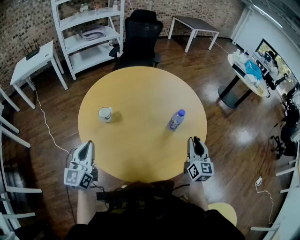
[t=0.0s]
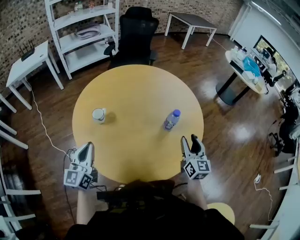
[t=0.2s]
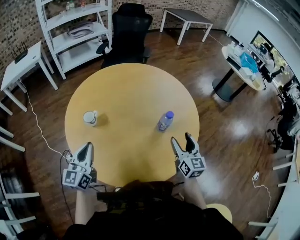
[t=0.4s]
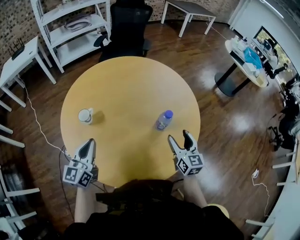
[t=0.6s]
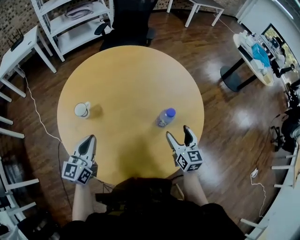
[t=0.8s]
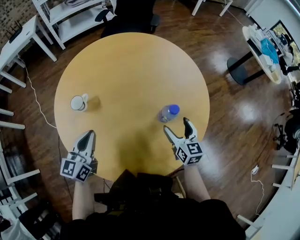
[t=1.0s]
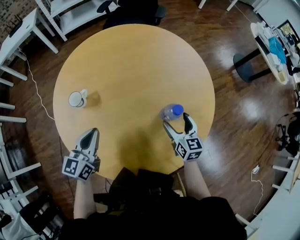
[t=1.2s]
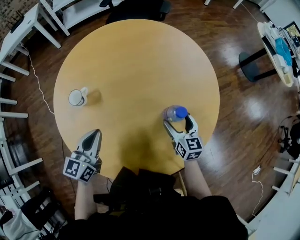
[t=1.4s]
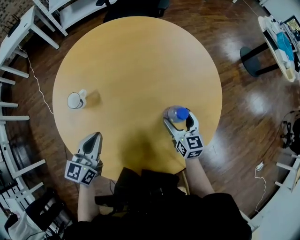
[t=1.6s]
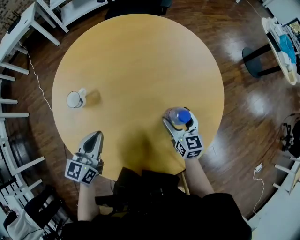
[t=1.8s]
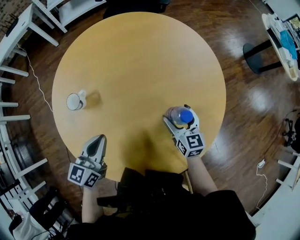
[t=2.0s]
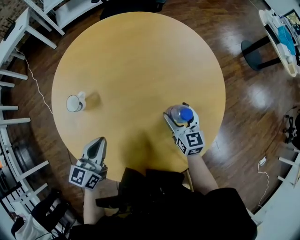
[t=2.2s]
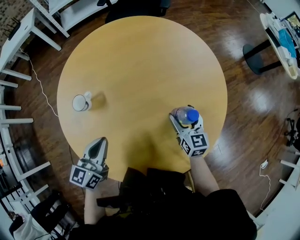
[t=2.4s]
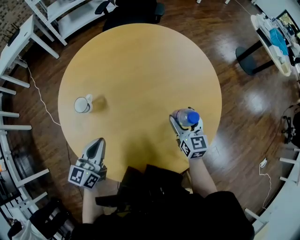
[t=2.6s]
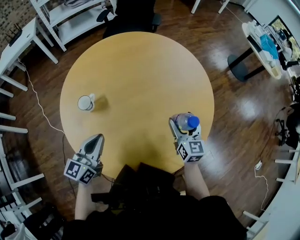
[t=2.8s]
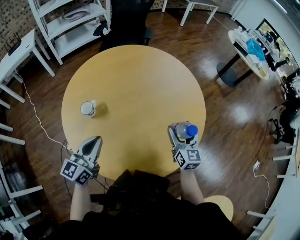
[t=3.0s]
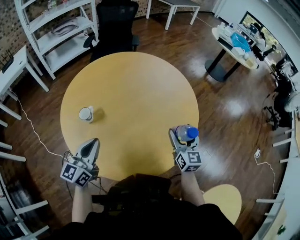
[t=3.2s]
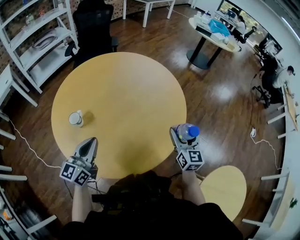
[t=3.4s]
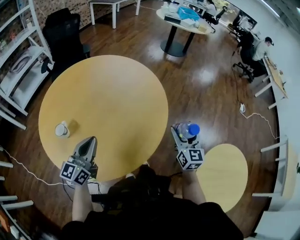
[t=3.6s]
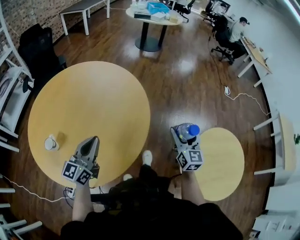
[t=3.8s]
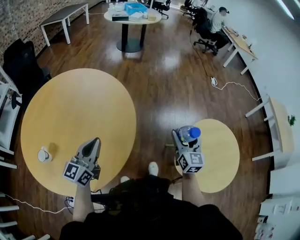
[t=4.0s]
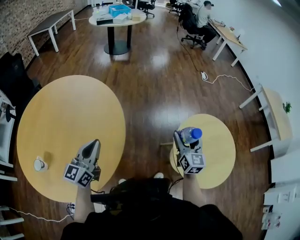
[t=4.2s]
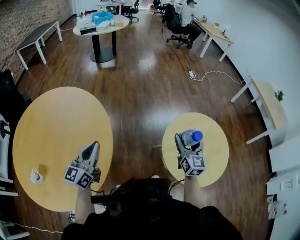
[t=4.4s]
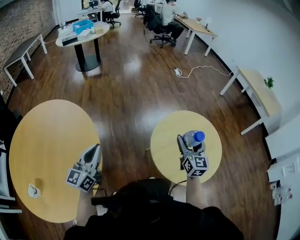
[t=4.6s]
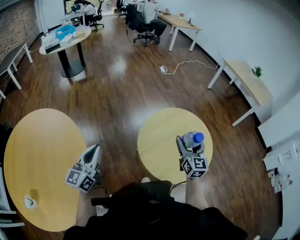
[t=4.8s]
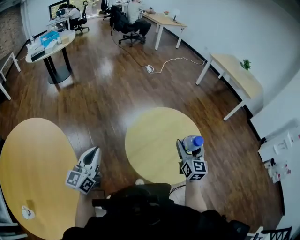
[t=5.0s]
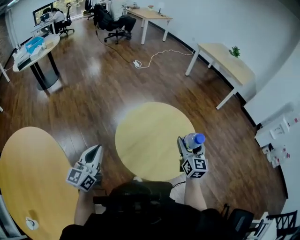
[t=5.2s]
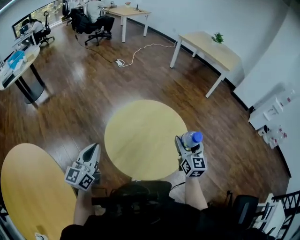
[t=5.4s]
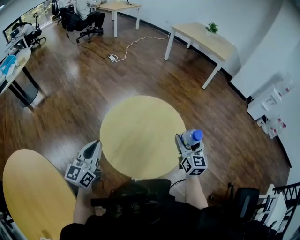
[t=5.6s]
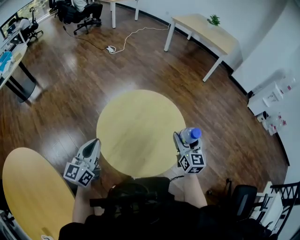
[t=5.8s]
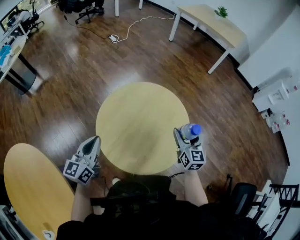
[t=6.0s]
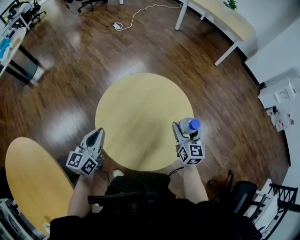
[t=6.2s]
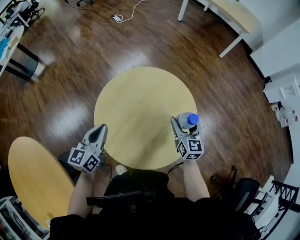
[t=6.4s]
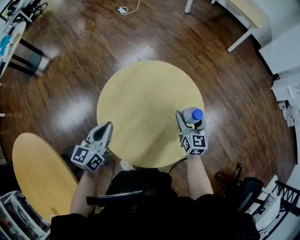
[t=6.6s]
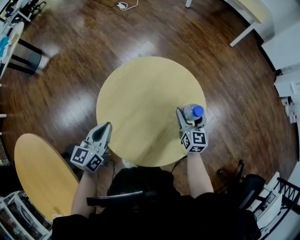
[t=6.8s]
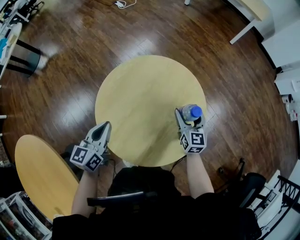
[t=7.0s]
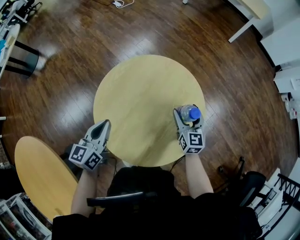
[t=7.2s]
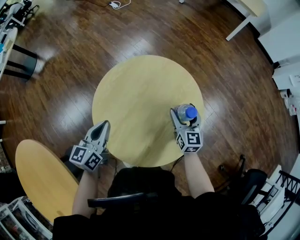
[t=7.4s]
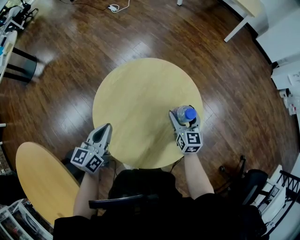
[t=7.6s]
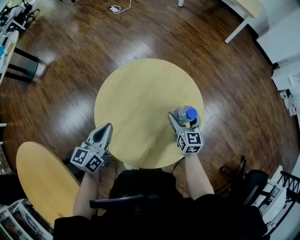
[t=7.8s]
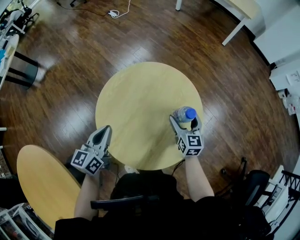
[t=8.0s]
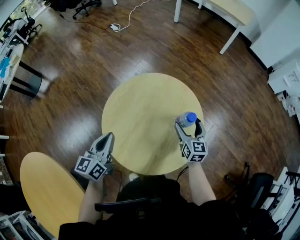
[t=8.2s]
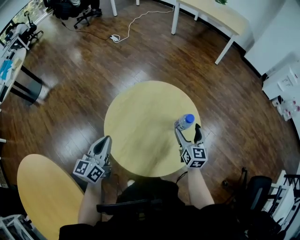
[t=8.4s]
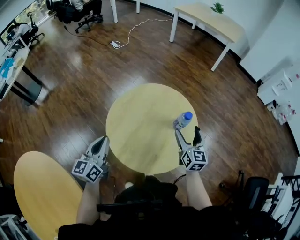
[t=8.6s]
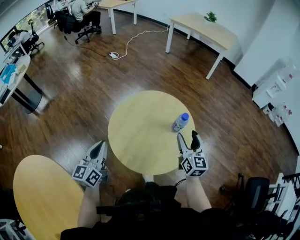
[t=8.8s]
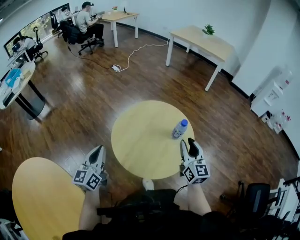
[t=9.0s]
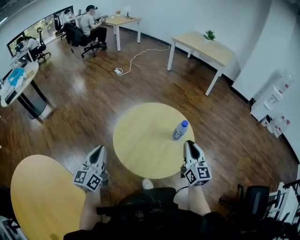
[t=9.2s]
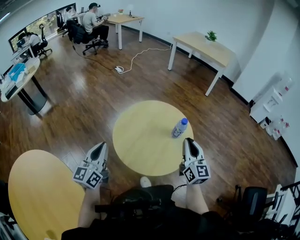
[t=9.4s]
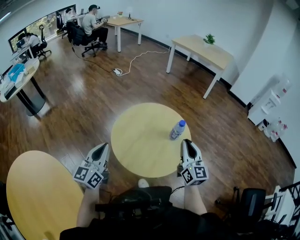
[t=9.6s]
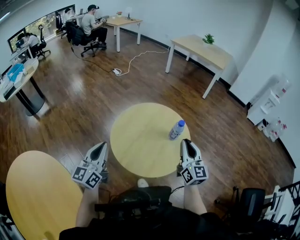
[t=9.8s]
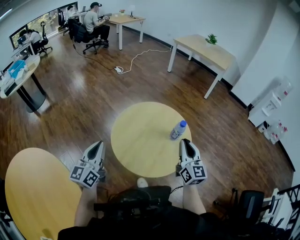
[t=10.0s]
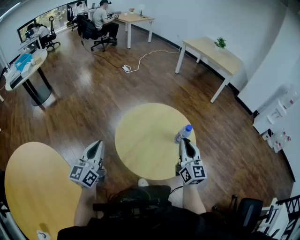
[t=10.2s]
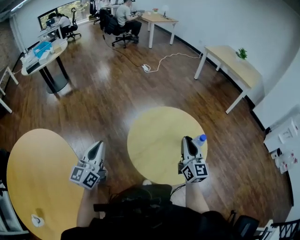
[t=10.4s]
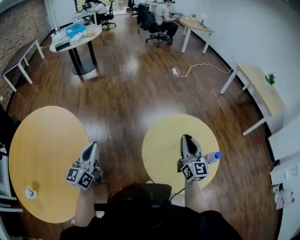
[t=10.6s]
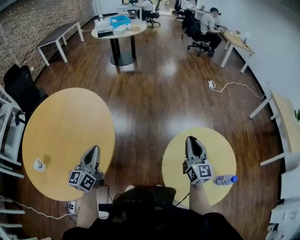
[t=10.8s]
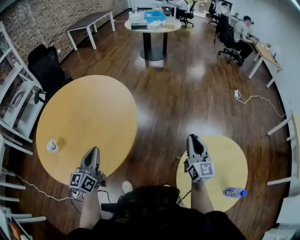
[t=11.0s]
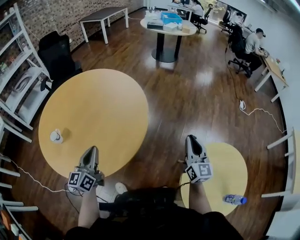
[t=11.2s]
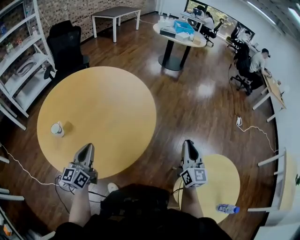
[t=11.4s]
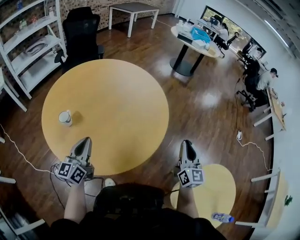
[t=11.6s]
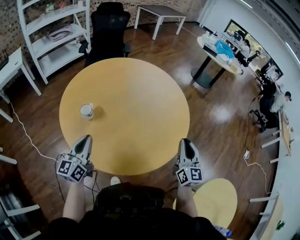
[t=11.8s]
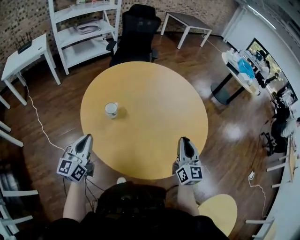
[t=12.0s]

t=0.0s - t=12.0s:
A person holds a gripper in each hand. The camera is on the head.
t=0.0s - t=1.6s: The right gripper moves forward and downward, some 25 cm, changes its angle by approximately 30 degrees, and opens its fingers, while the left gripper travels to the right, forward and downward by some 20 cm, and turns by about 20 degrees.
t=1.6s - t=3.0s: The left gripper shifts roughly 5 cm upward. The right gripper goes some 15 cm upward and backward, and changes its angle by about 20 degrees.
t=3.0s - t=4.4s: The left gripper shifts by some 35 cm, and rotates approximately 50 degrees; the right gripper ends up some 60 cm from where it was, and changes its angle by some 70 degrees.
t=4.4s - t=6.0s: The left gripper moves about 40 cm, and turns by some 40 degrees, while the right gripper moves about 40 cm, and changes its angle by roughly 40 degrees.
t=6.0s - t=7.6s: The right gripper is displaced downward by approximately 15 cm. Meanwhile the left gripper is displaced downward and forward by about 10 cm.
t=7.6s - t=9.0s: The left gripper travels upward, backward and to the left by approximately 20 cm, and turns by some 20 degrees, while the right gripper is displaced upward and backward by about 25 cm, rotates roughly 20 degrees, and closes.
t=9.0s - t=10.4s: The left gripper heads backward, covering roughly 5 cm, while the right gripper travels to the left and forward by roughly 10 cm.
t=10.4s - t=12.0s: The right gripper ends up approximately 70 cm from where it was, and swivels approximately 80 degrees; the left gripper shifts by some 70 cm, and rotates some 90 degrees.

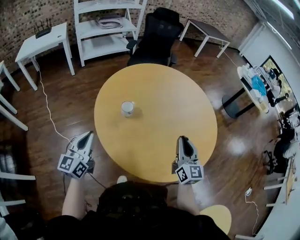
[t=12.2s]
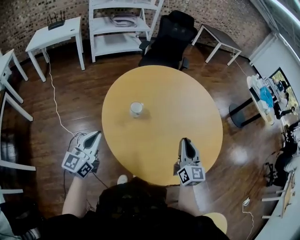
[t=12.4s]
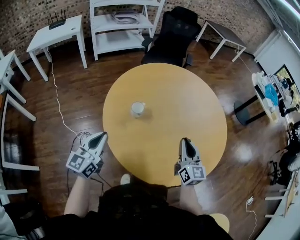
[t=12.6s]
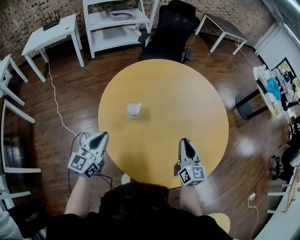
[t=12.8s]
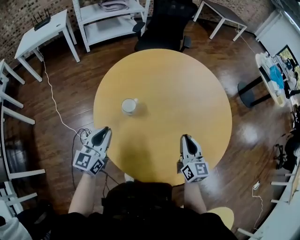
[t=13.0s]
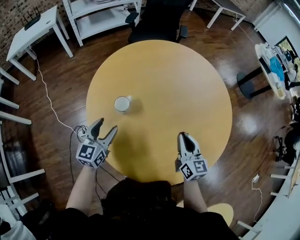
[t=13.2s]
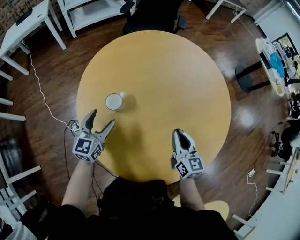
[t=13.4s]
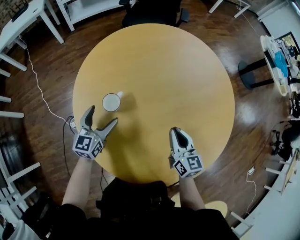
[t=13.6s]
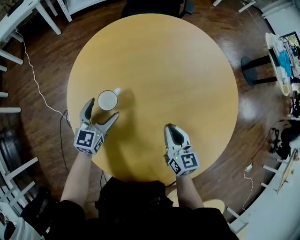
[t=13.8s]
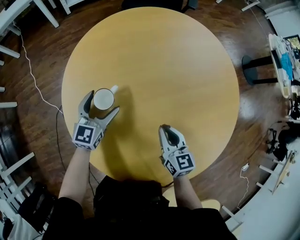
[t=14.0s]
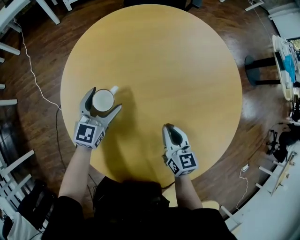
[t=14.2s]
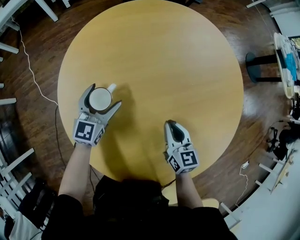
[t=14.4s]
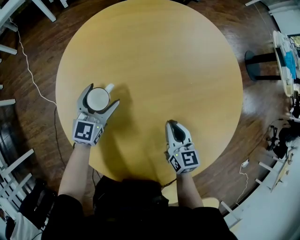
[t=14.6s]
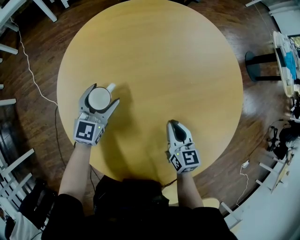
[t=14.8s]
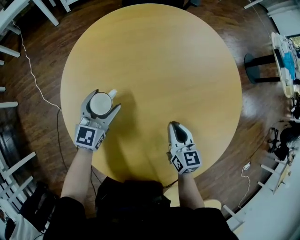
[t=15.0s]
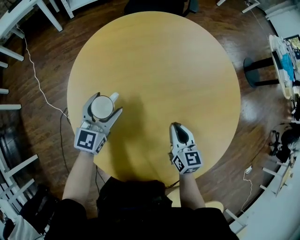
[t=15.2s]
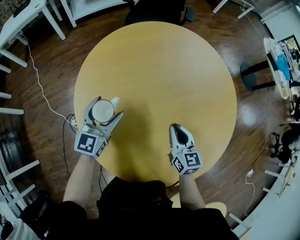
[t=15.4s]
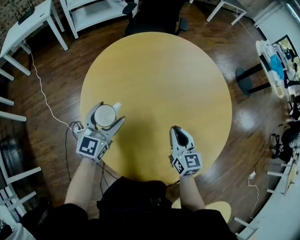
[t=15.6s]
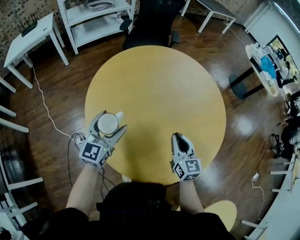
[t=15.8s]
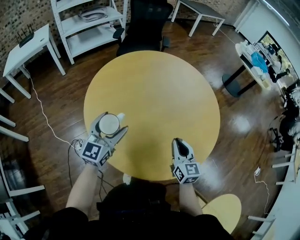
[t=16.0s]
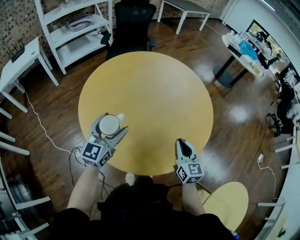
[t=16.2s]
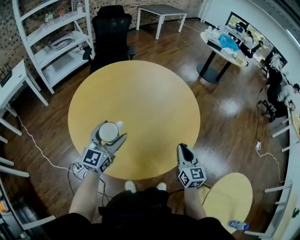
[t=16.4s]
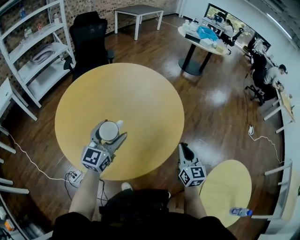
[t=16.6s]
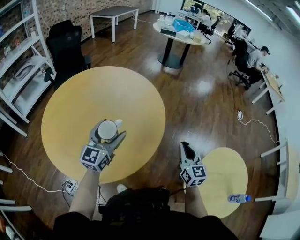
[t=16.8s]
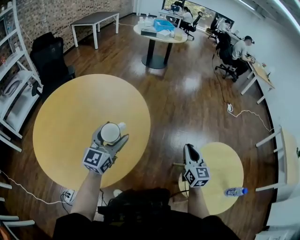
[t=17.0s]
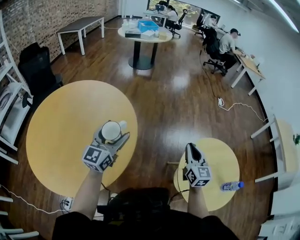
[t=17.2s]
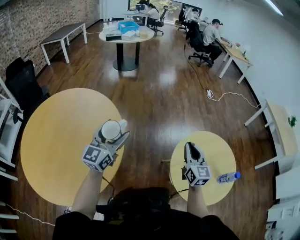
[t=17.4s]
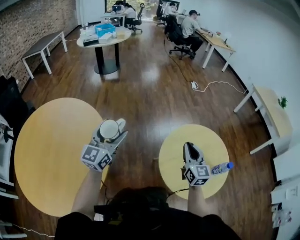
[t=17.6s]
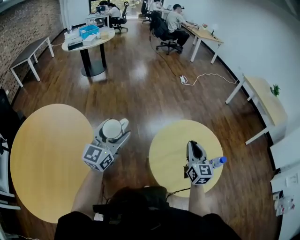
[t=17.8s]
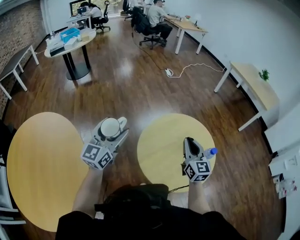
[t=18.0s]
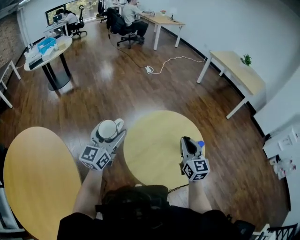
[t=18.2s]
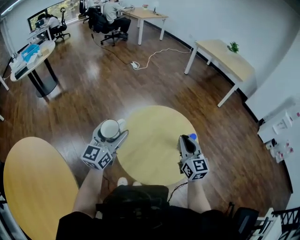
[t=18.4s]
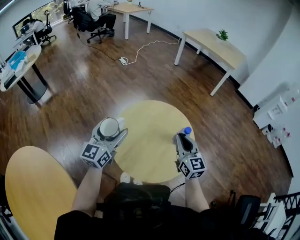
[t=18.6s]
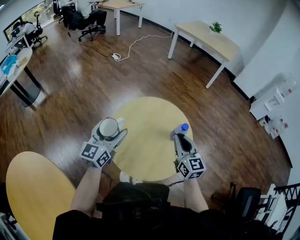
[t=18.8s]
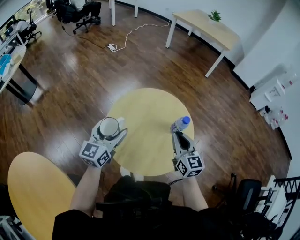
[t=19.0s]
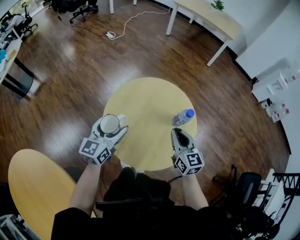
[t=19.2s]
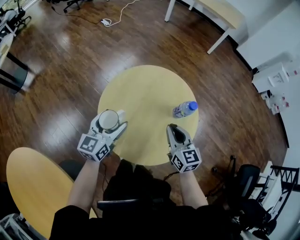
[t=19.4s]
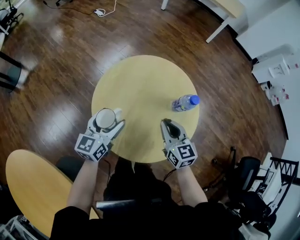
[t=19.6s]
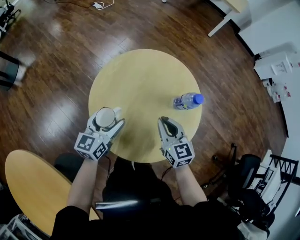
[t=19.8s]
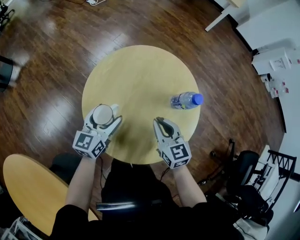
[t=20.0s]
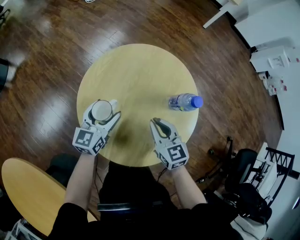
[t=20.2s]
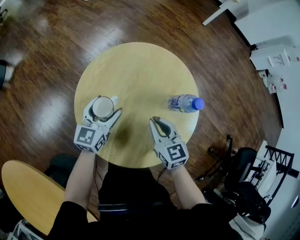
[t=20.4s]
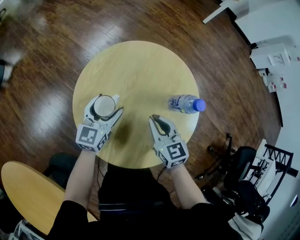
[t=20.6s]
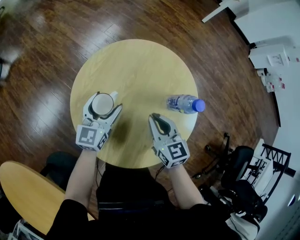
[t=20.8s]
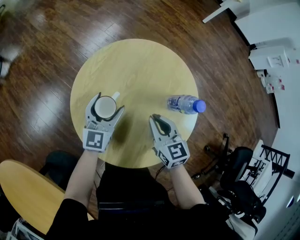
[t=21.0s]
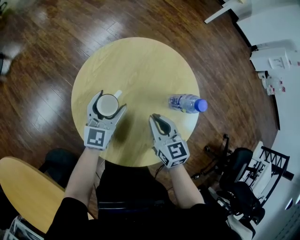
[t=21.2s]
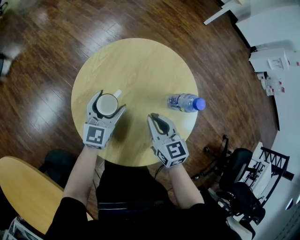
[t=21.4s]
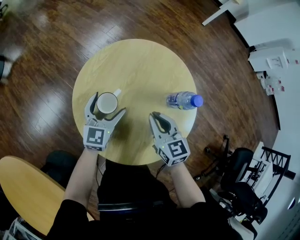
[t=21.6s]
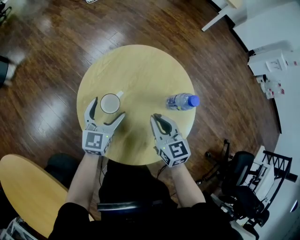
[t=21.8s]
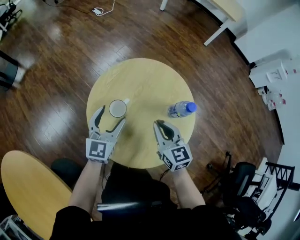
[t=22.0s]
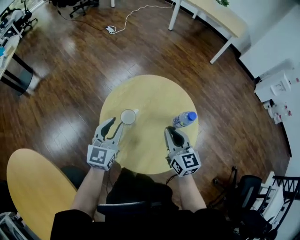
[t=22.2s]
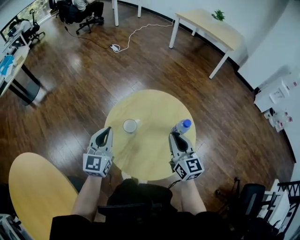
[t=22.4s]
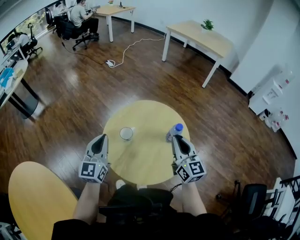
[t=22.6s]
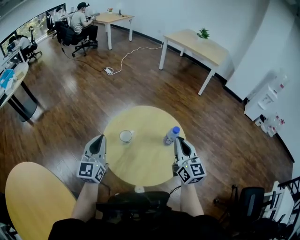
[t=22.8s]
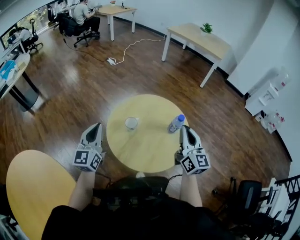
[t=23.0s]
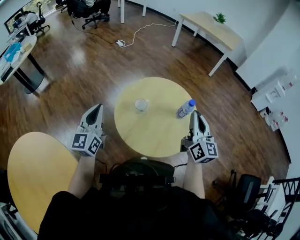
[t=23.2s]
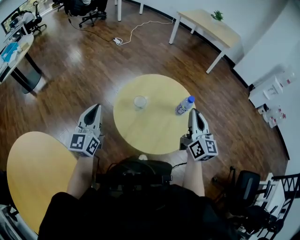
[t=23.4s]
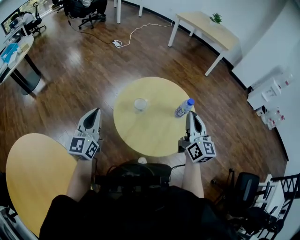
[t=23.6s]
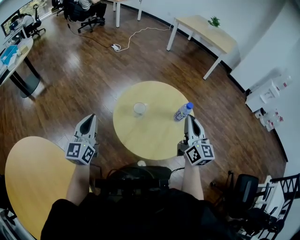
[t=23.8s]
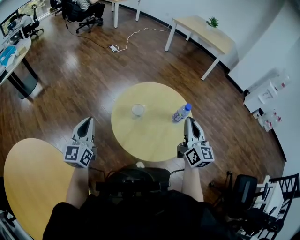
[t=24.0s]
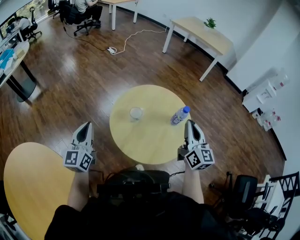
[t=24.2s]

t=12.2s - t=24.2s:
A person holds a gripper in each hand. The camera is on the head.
t=12.2s - t=13.8s: The left gripper heads forward, downward and to the right, covering some 30 cm, changes its angle by about 20 degrees, and opens its fingers. The right gripper travels downward and forward by approximately 20 cm, and changes its angle by about 30 degrees.
t=13.8s - t=15.2s: The grippers make only small movements.
t=15.2s - t=16.6s: The right gripper moves approximately 35 cm, and swivels some 40 degrees; the left gripper shifts by roughly 30 cm, and turns by some 40 degrees.
t=16.6s - t=18.2s: The pair of grippers is taken some 60 cm. The left gripper swivels some 60 degrees. The right gripper changes its angle by some 60 degrees.
t=18.2s - t=19.8s: The left gripper goes some 25 cm downward and to the right, and rotates some 40 degrees. Meanwhile the right gripper shifts roughly 20 cm downward, and rotates about 20 degrees.
t=19.8s - t=21.2s: The left gripper moves forward, downward and to the right, approximately 10 cm.
t=21.2s - t=22.6s: The left gripper goes approximately 25 cm upward, backward and to the left, and closes up. The right gripper goes some 20 cm upward, and turns by roughly 30 degrees.
t=22.6s - t=24.2s: The left gripper moves to the left and backward, some 15 cm, while the right gripper heads upward, covering some 5 cm.
